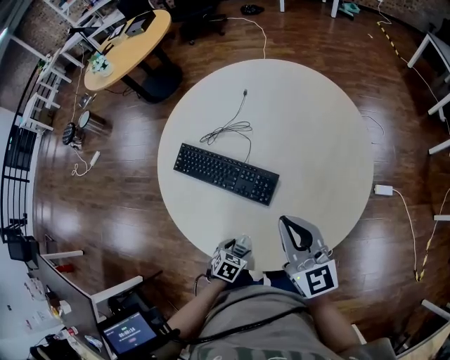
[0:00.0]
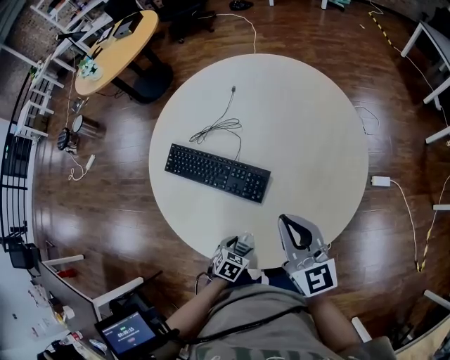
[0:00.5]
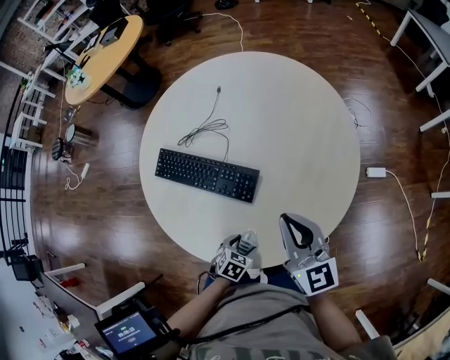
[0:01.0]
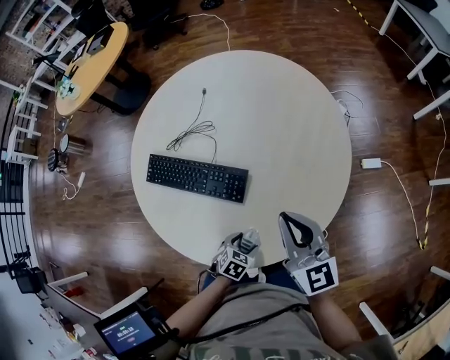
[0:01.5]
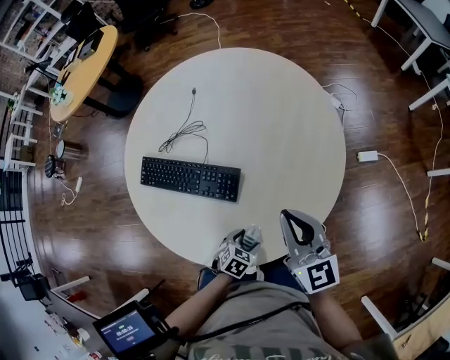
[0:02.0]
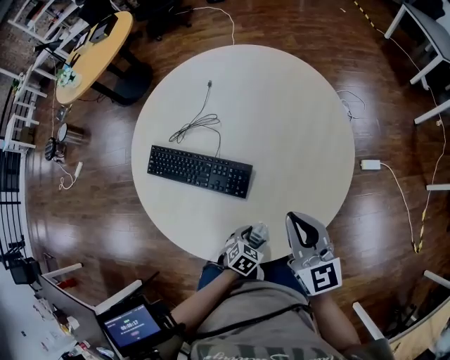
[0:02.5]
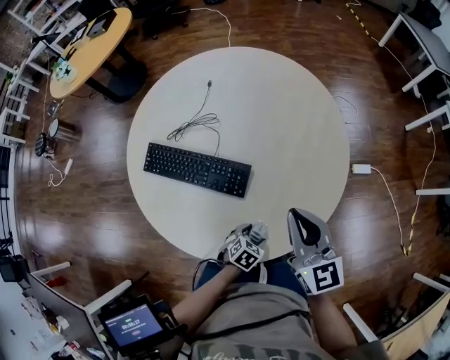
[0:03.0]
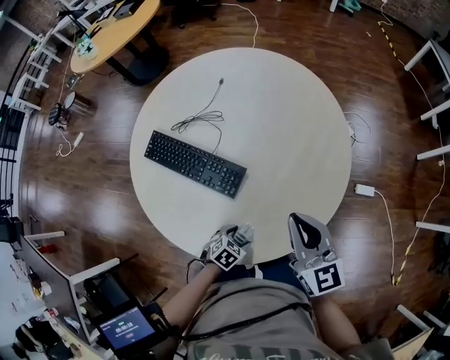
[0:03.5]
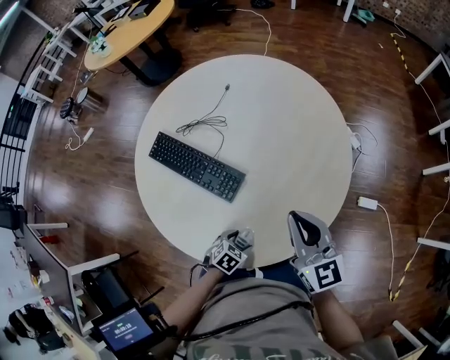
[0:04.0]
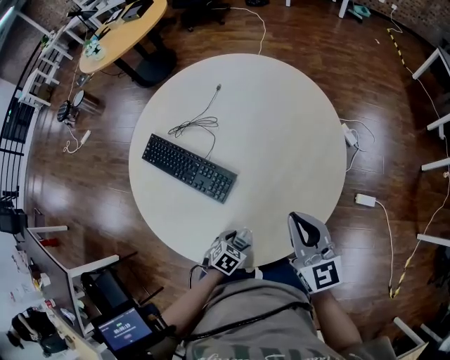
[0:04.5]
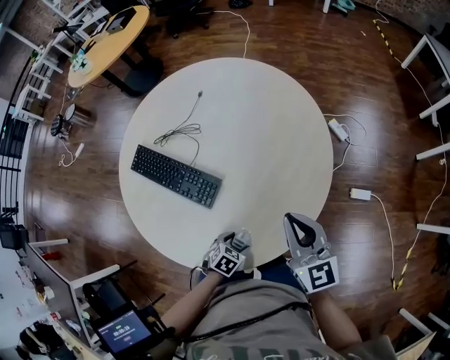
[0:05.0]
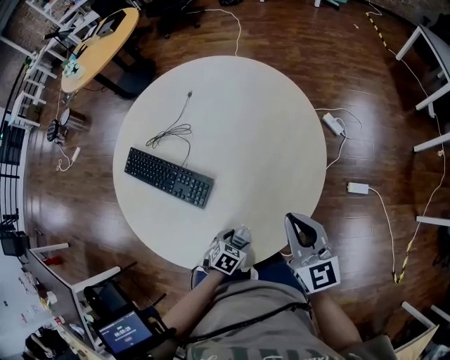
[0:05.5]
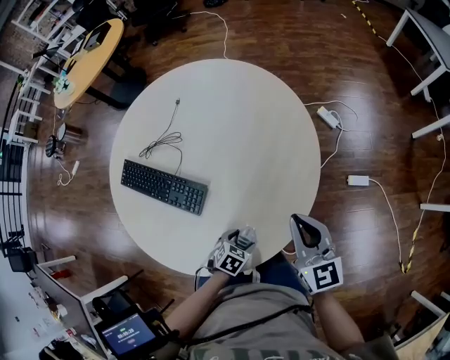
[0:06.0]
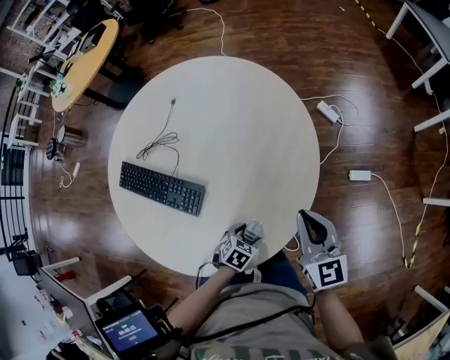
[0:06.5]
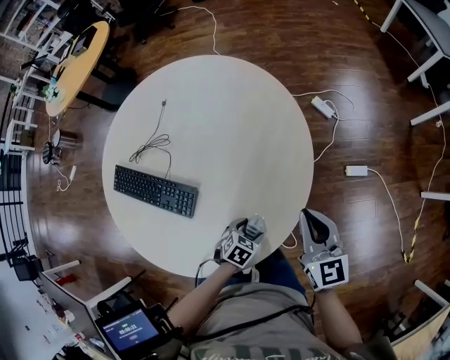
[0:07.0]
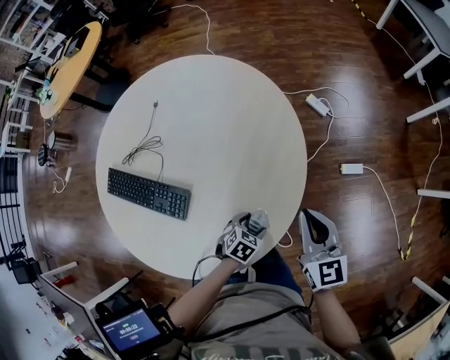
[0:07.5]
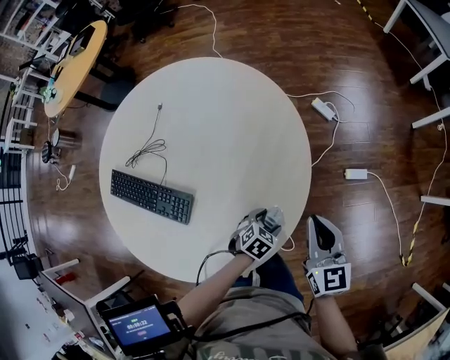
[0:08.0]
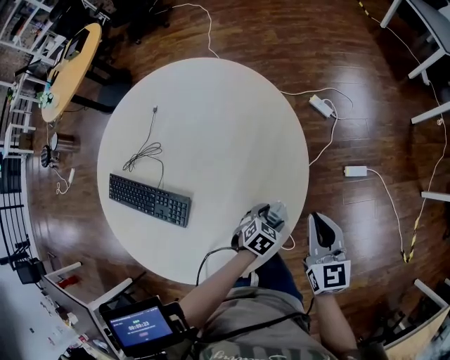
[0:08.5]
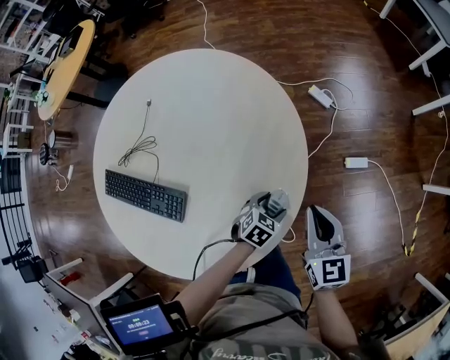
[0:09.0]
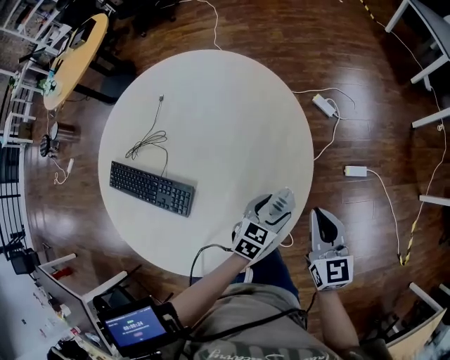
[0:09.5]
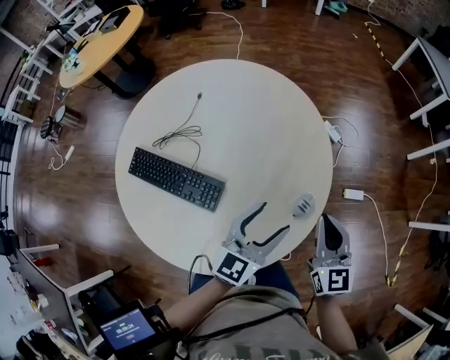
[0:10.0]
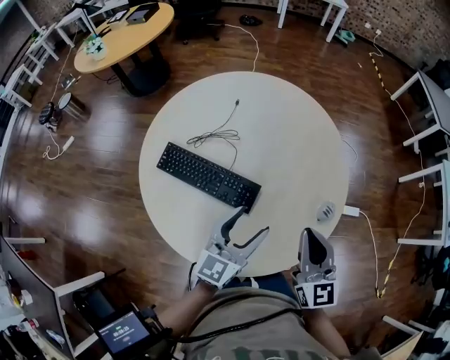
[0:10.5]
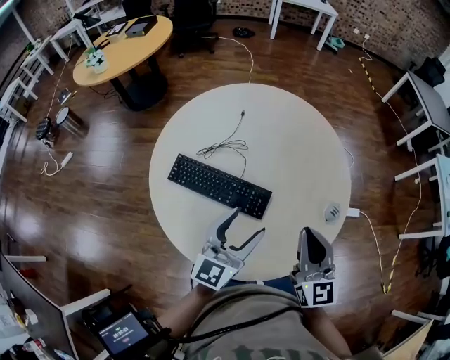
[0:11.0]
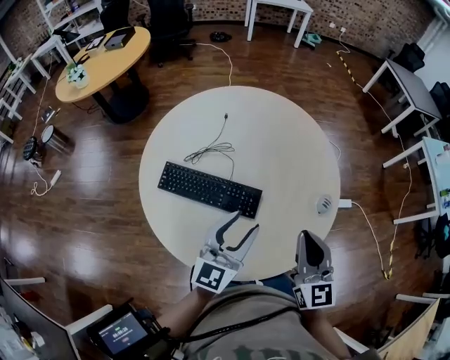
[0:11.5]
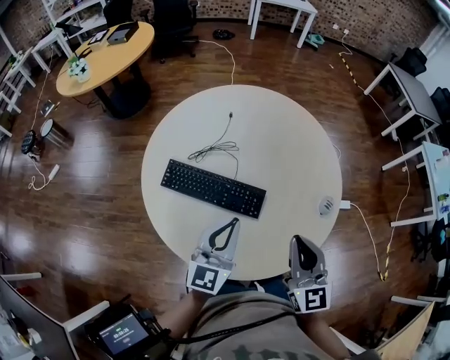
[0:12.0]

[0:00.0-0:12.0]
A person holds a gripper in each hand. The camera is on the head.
0:00.0 to 0:02.0: The right gripper moves to the right, roughly 10 cm, while the left gripper heads to the right and forward, covering roughly 15 cm.
0:02.0 to 0:04.0: The right gripper heads forward, covering some 5 cm.
0:04.0 to 0:06.0: The right gripper goes some 10 cm to the right. Meanwhile the left gripper is displaced to the right and forward by about 10 cm.
0:06.0 to 0:08.0: The left gripper moves forward and to the right, some 15 cm, while the right gripper moves to the right and forward, some 10 cm.
0:08.0 to 0:10.0: The left gripper heads upward and to the left, covering about 30 cm, and tips its fingers upward by some 50 degrees; the right gripper travels to the left, upward and backward by approximately 10 cm.
0:10.0 to 0:12.0: The right gripper moves to the left and backward, roughly 30 cm. The left gripper heads to the left, covering roughly 30 cm, and closes.

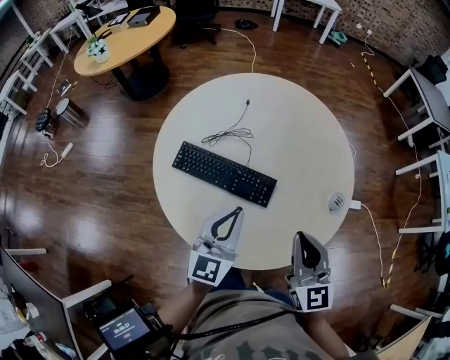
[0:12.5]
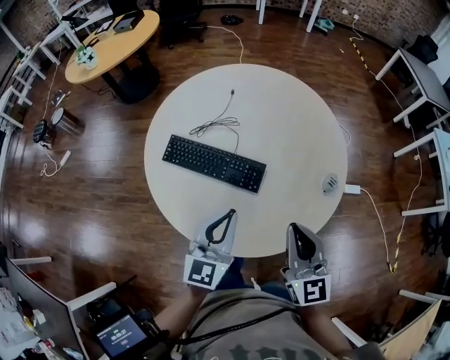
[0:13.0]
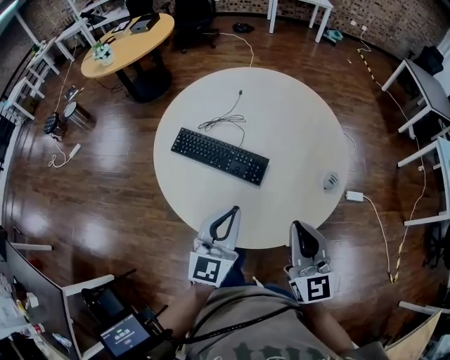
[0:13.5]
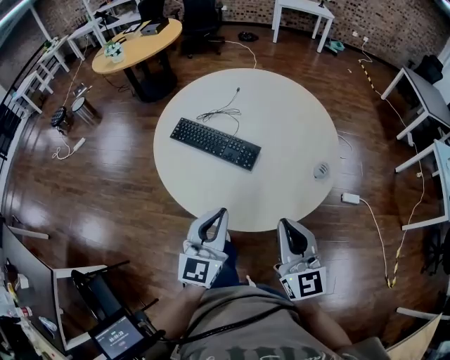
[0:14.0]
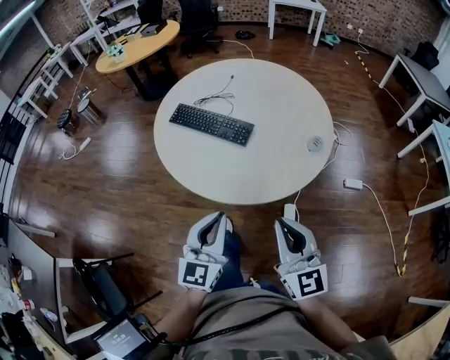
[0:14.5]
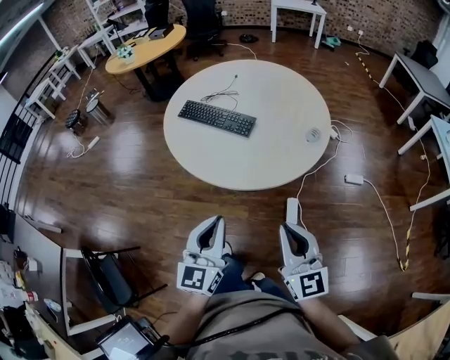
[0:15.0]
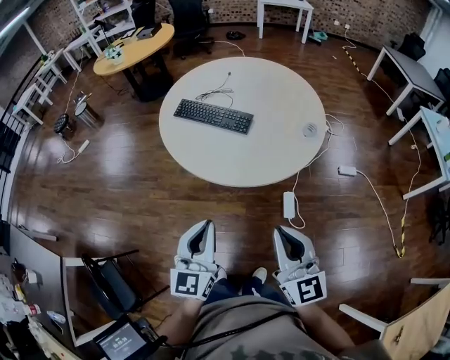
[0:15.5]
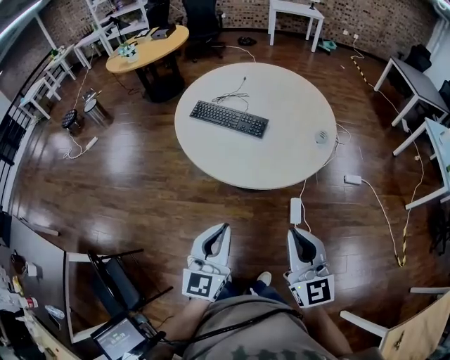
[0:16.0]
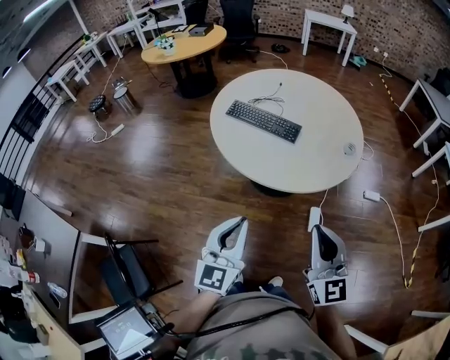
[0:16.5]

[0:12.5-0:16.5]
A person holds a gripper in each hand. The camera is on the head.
0:12.5 to 0:14.5: The two grippers go some 30 cm backward.
0:14.5 to 0:16.5: The right gripper moves backward, to the left and upward, roughly 15 cm. The left gripper heads to the left, backward and upward, covering some 20 cm.

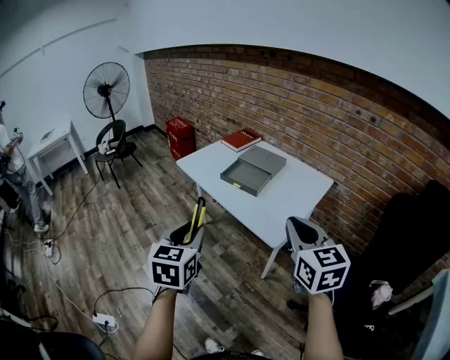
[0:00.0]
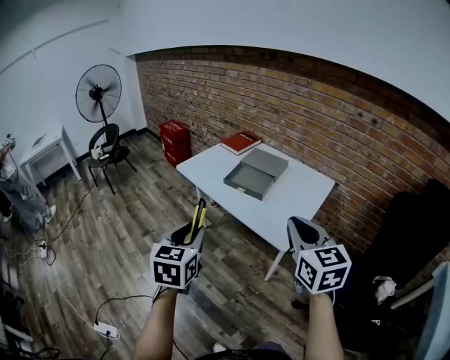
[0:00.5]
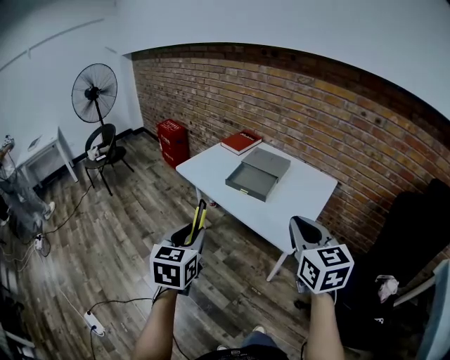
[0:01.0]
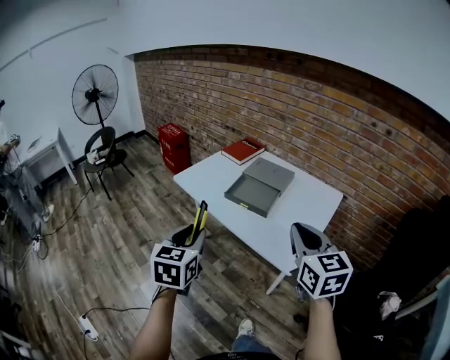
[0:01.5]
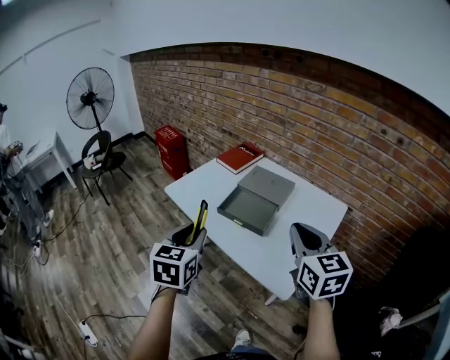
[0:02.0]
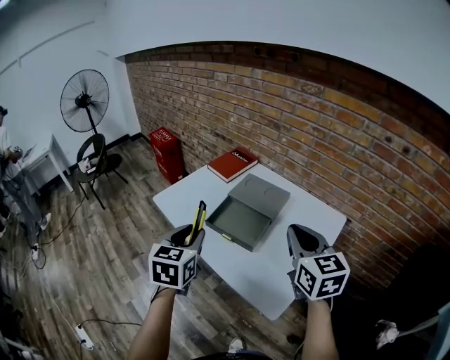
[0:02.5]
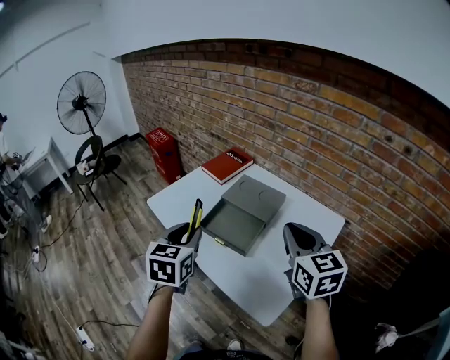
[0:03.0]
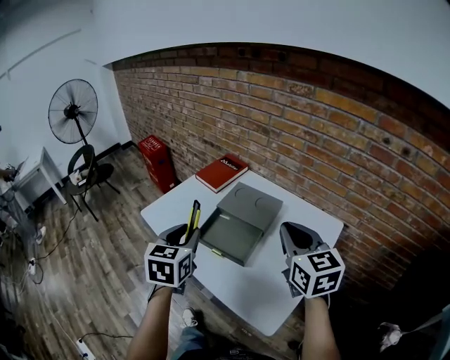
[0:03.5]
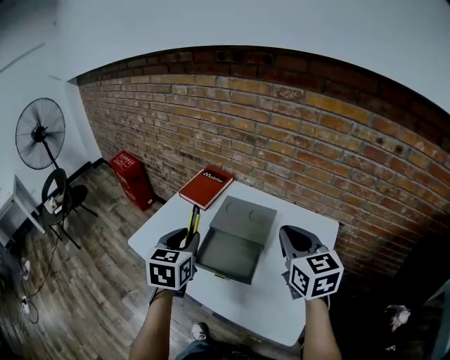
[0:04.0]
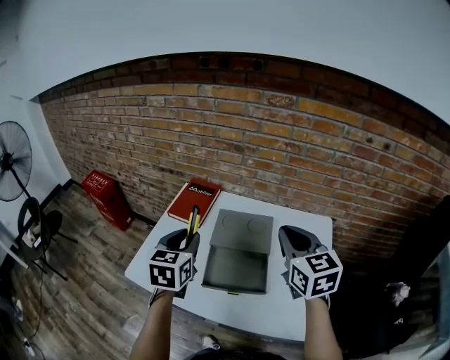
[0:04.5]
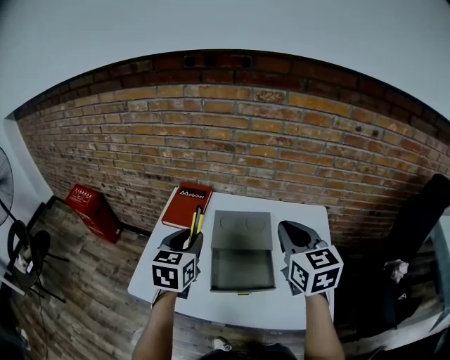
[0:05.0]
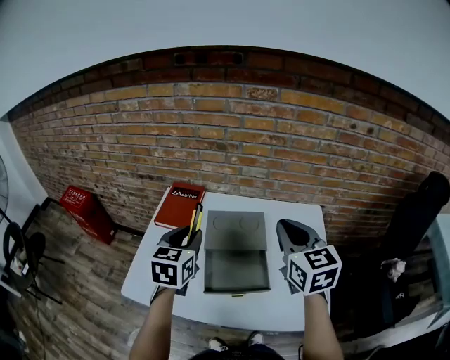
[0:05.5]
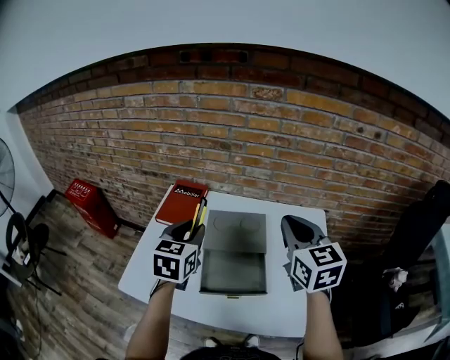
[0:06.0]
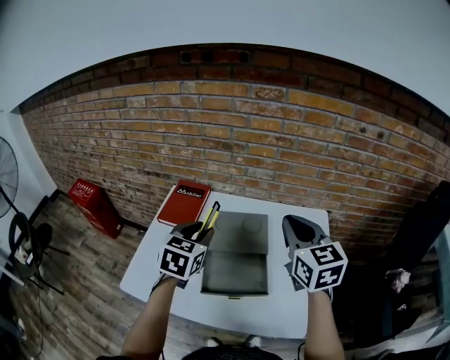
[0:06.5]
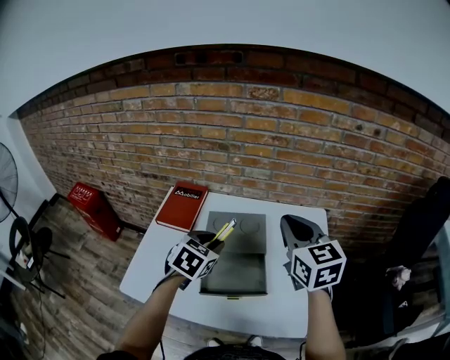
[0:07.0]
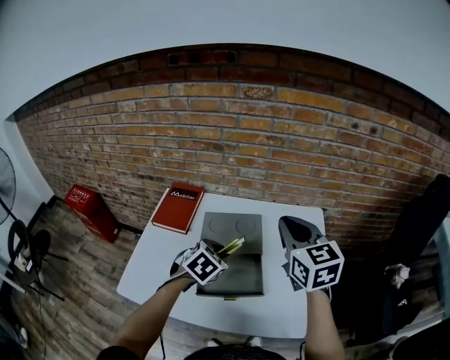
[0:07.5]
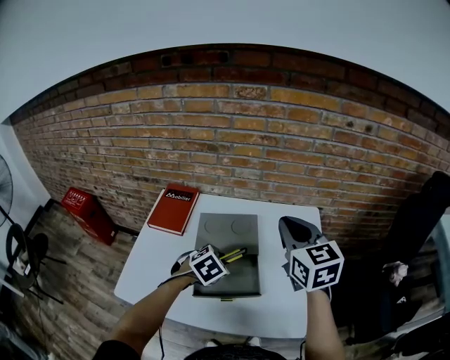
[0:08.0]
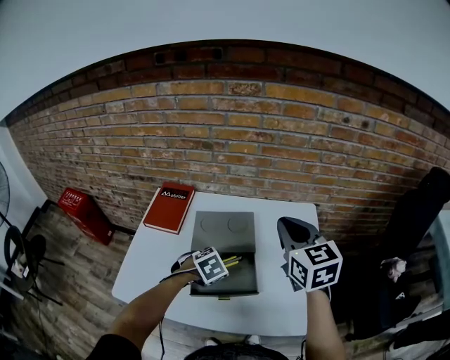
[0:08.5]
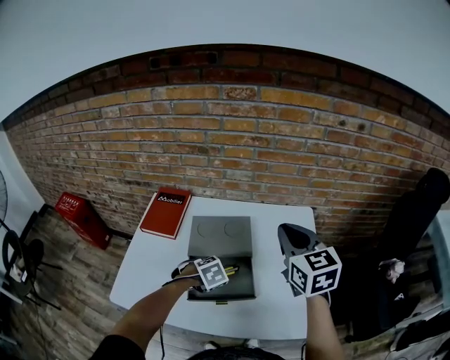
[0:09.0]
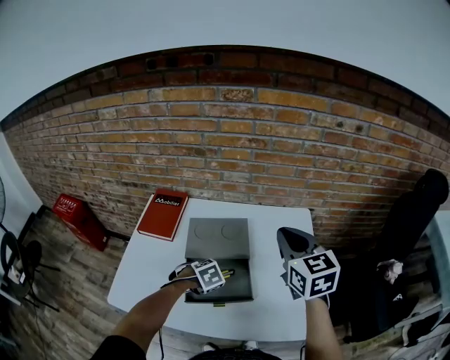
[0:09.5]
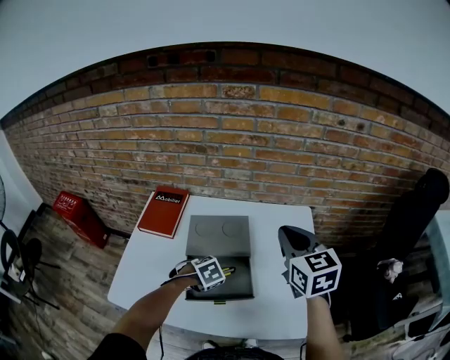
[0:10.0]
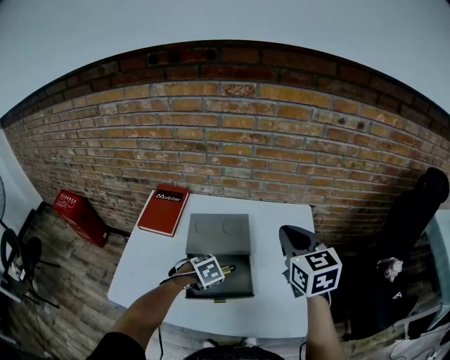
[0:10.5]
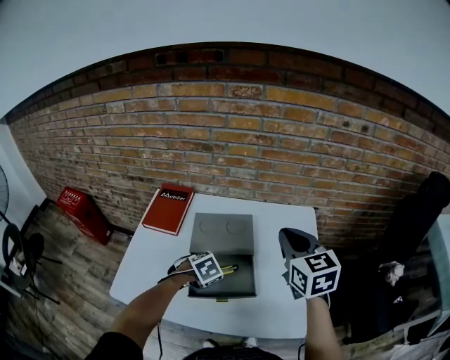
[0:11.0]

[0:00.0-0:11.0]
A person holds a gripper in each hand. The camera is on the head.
0:00.0 to 0:02.0: The grippers both shift forward by about 25 cm.
0:02.0 to 0:03.5: Both grippers move forward and to the right, some 15 cm.
0:03.5 to 0:05.5: The left gripper moves some 20 cm, and swivels about 30 degrees. The right gripper ends up roughly 10 cm from where it was, and changes its angle by about 30 degrees.
0:05.5 to 0:07.5: The left gripper goes approximately 15 cm downward and to the right, and rotates approximately 40 degrees.
0:07.5 to 0:09.0: The left gripper travels downward by approximately 10 cm, and changes its angle by roughly 30 degrees.
0:09.0 to 0:11.0: The grippers make only small movements.
